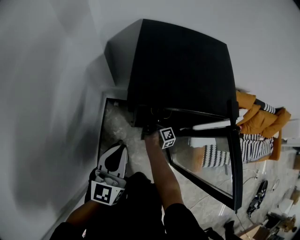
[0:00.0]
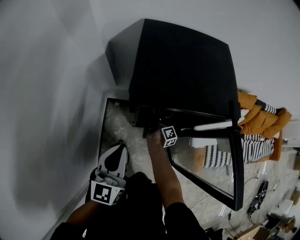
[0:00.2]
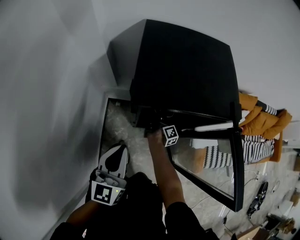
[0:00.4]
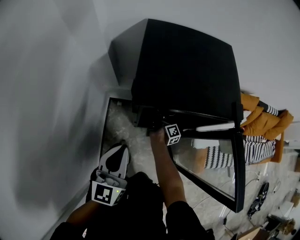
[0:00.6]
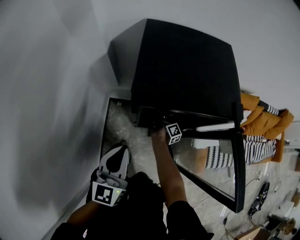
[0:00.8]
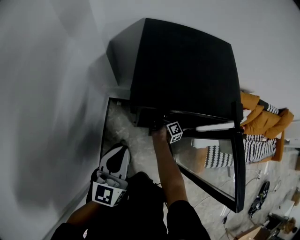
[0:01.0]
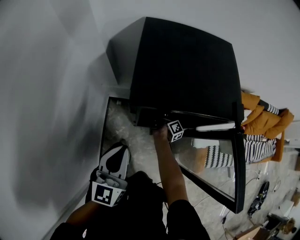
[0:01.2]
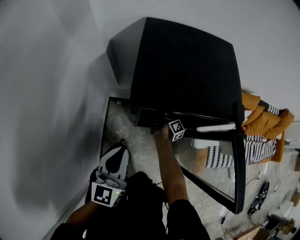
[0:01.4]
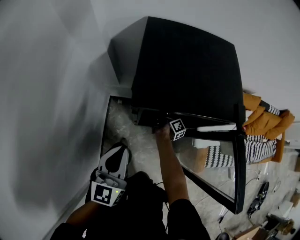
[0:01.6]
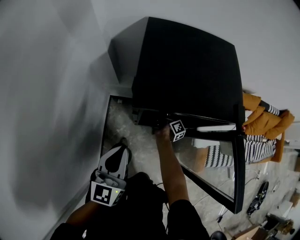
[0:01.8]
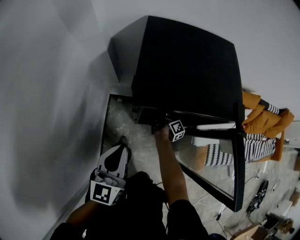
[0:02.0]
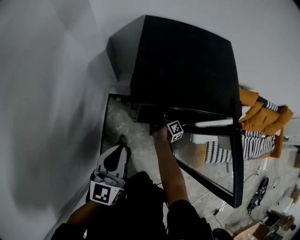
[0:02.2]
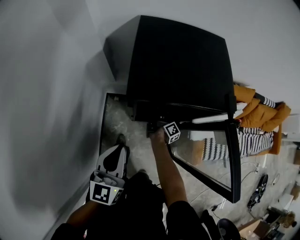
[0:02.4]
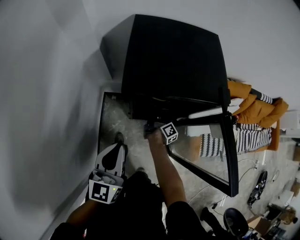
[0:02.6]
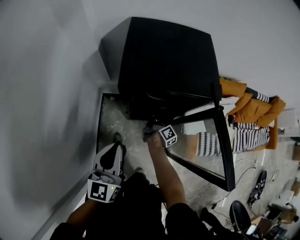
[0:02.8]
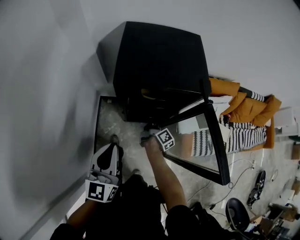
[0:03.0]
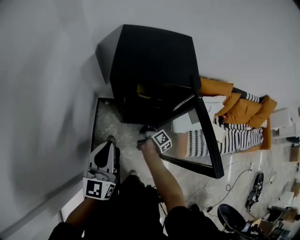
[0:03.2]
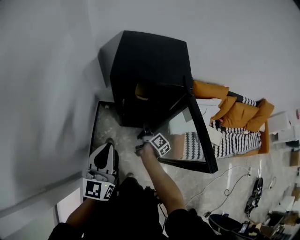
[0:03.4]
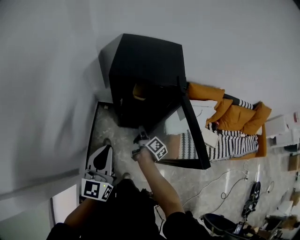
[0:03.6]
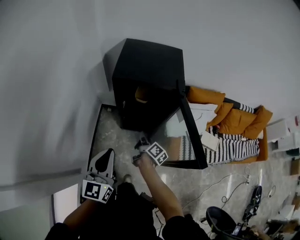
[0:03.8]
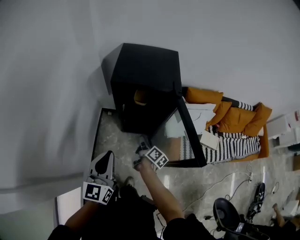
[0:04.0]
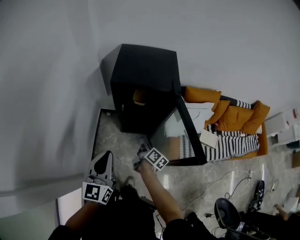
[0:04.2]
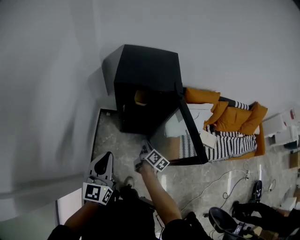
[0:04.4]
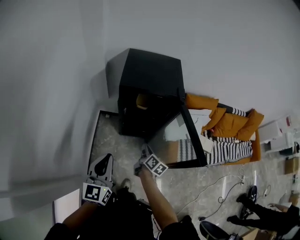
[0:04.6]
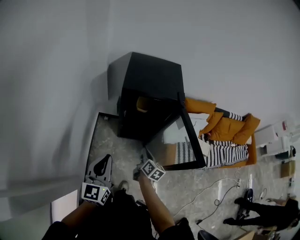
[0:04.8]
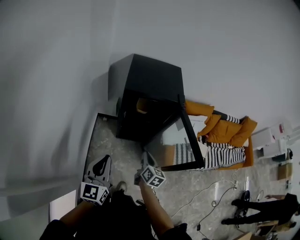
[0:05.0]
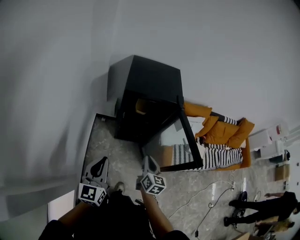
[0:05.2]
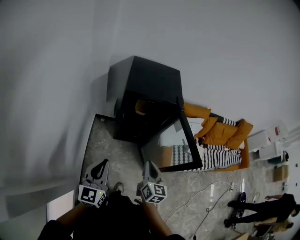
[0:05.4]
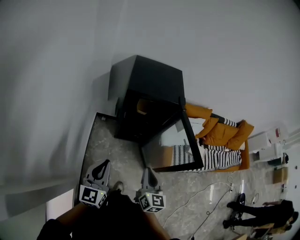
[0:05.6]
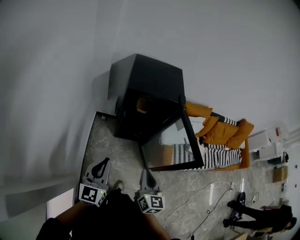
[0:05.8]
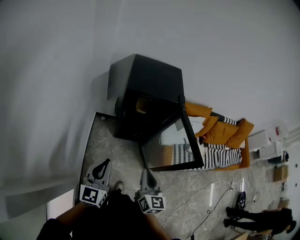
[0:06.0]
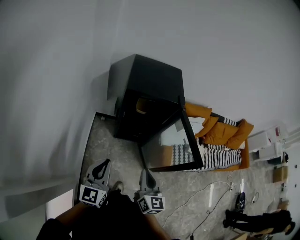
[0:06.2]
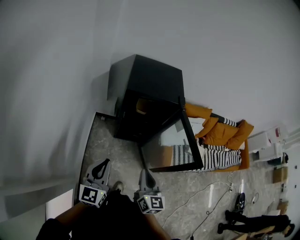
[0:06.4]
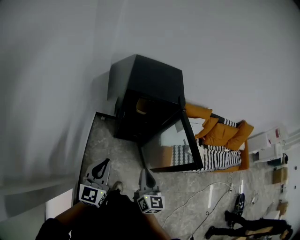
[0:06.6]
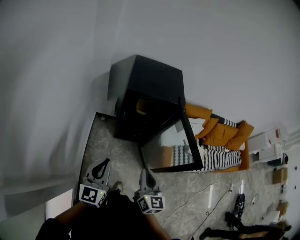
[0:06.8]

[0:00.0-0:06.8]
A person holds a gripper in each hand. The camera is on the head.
1.4 to 2.8 s: The left gripper changes place by about 5 cm.
2.8 to 4.0 s: The left gripper shifts by some 20 cm.
4.0 to 5.4 s: The left gripper ends up about 10 cm from where it was.

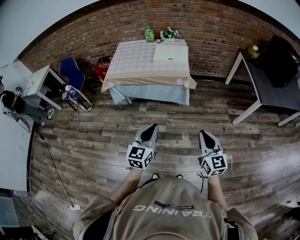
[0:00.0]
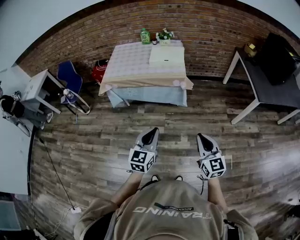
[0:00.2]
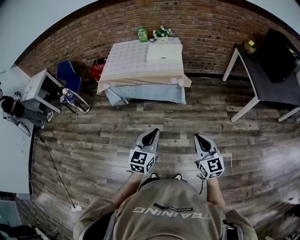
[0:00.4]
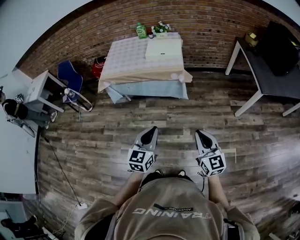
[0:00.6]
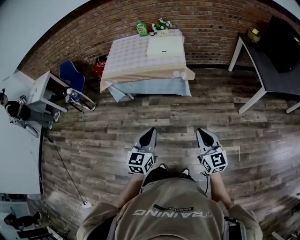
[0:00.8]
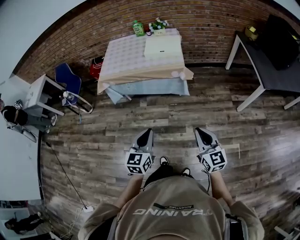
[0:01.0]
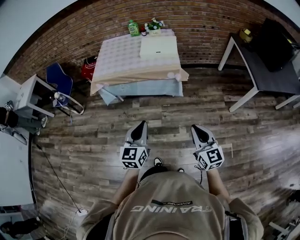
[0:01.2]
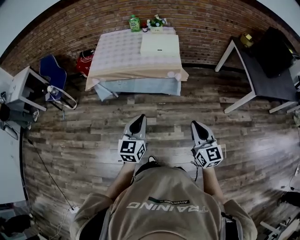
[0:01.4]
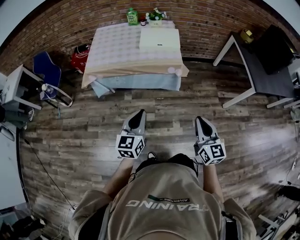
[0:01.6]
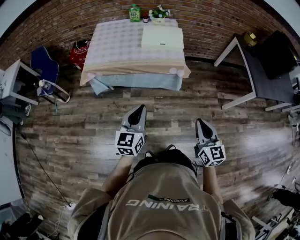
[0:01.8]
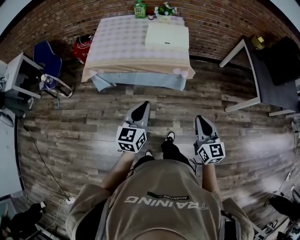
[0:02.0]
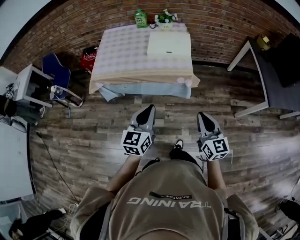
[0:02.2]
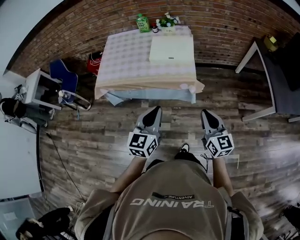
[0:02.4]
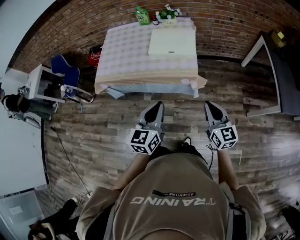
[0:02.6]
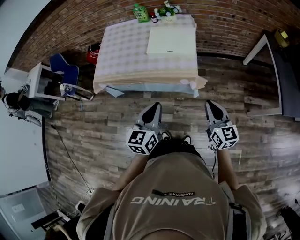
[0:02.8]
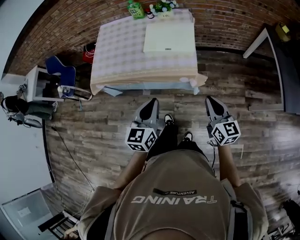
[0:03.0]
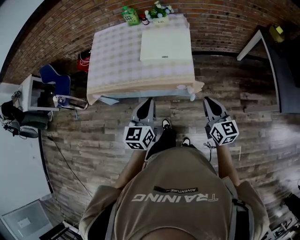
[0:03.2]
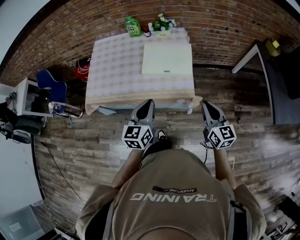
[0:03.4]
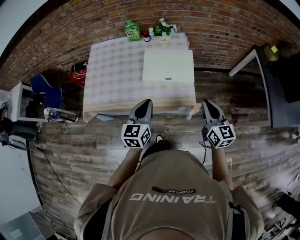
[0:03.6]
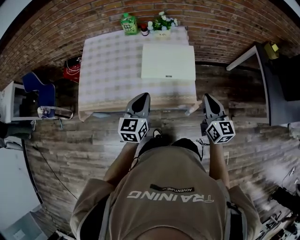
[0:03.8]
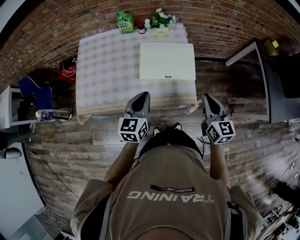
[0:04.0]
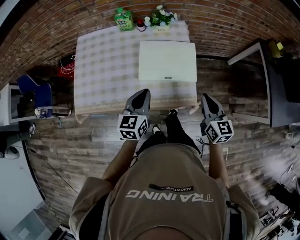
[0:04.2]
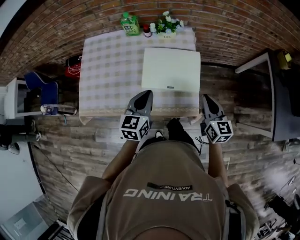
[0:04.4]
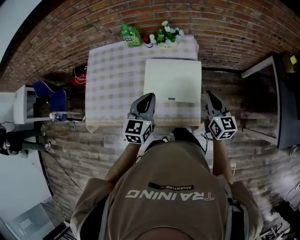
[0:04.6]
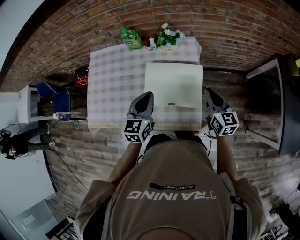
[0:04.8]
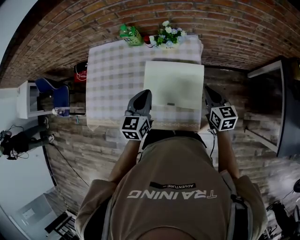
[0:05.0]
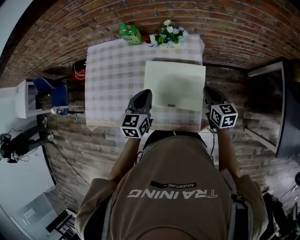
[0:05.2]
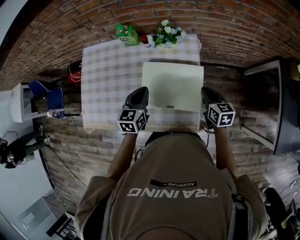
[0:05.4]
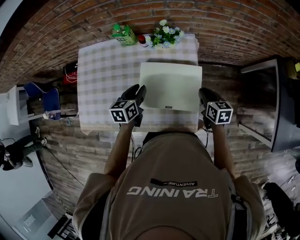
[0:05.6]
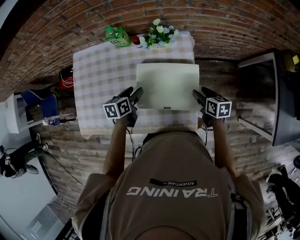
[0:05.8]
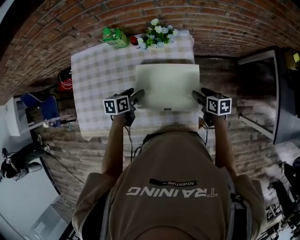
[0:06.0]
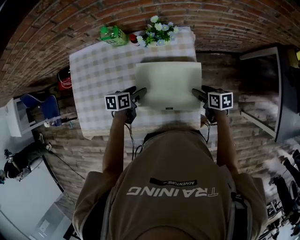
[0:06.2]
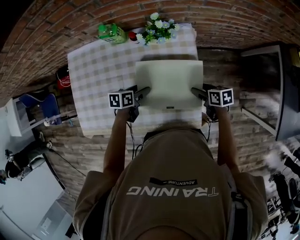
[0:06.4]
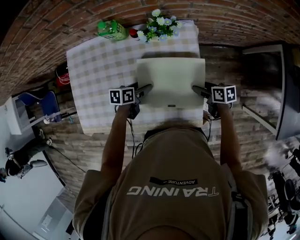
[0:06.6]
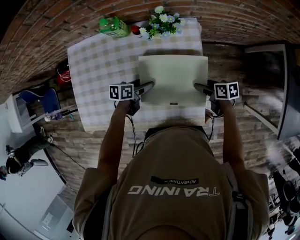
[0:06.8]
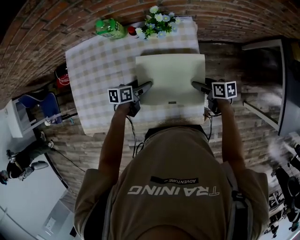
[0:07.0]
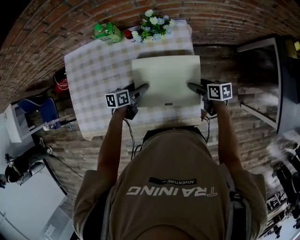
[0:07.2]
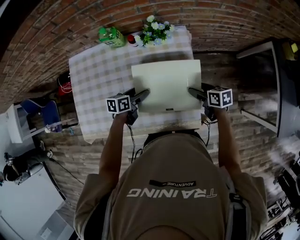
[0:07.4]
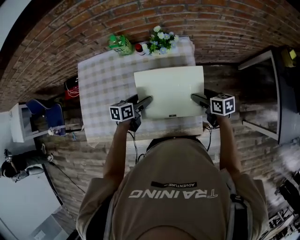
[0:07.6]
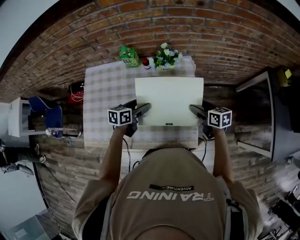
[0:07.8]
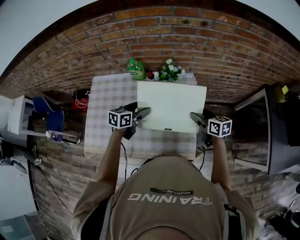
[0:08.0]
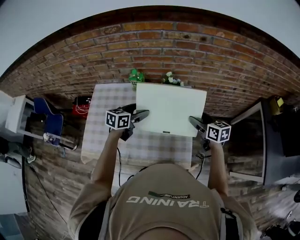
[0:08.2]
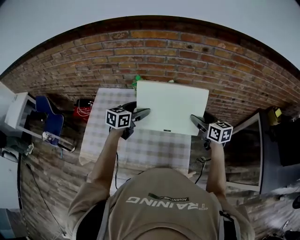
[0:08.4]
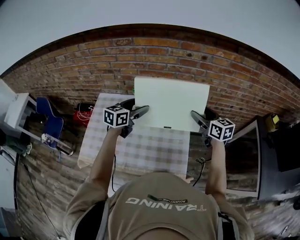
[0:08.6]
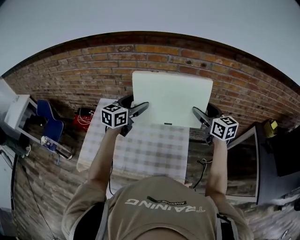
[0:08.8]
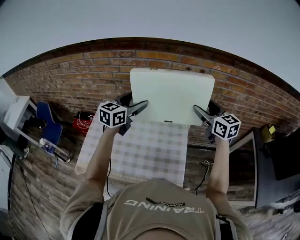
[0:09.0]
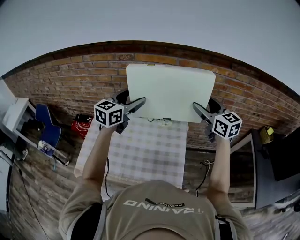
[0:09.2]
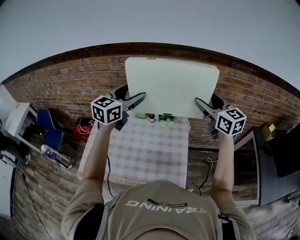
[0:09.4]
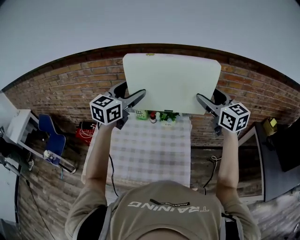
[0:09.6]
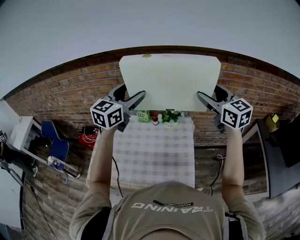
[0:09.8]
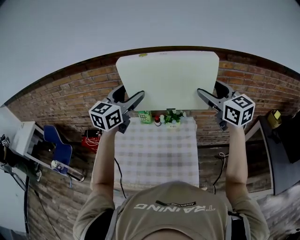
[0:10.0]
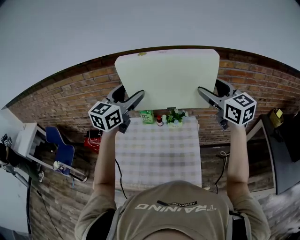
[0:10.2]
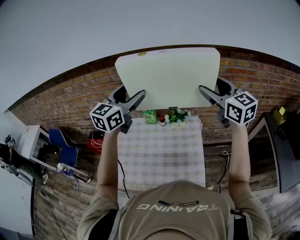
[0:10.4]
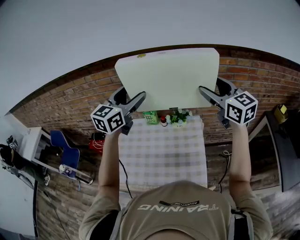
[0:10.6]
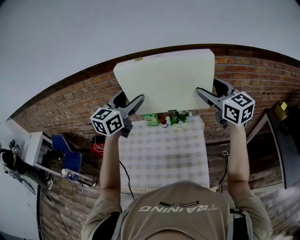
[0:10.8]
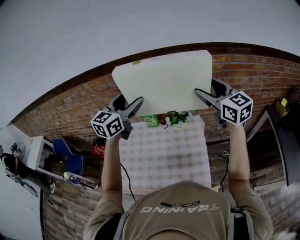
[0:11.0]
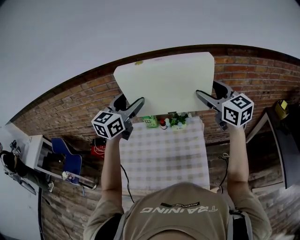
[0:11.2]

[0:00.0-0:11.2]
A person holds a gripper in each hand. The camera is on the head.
0.0 to 1.6 s: The left gripper travels forward and to the left by roughly 15 cm, while the right gripper travels forward by about 10 cm.
1.6 to 3.2 s: Both grippers travel together forward, about 30 cm.
3.2 to 4.8 s: The grippers both shift forward by roughly 35 cm.
4.8 to 6.4 s: Both grippers move downward, roughly 20 cm. The left gripper changes its angle by approximately 50 degrees, and opens. The right gripper angles its fingers downward, by roughly 30 degrees, and opens.
6.4 to 8.0 s: Both grippers move upward, some 15 cm. The left gripper turns by about 30 degrees. Meanwhile the right gripper changes its angle by approximately 30 degrees.
8.0 to 9.6 s: The two grippers go approximately 35 cm upward. The right gripper rotates roughly 40 degrees. The left gripper changes its angle by about 40 degrees.
9.6 to 11.2 s: The grippers move only a little.

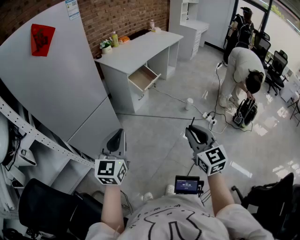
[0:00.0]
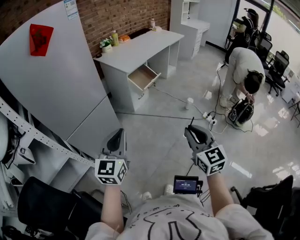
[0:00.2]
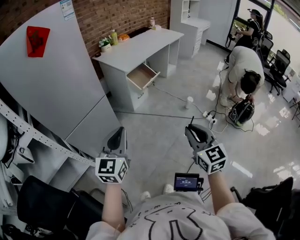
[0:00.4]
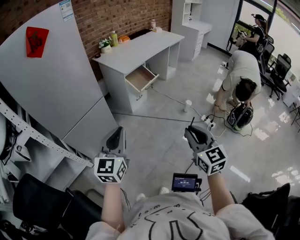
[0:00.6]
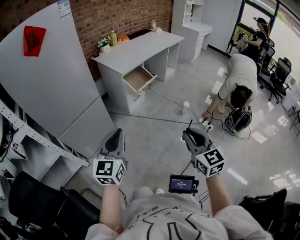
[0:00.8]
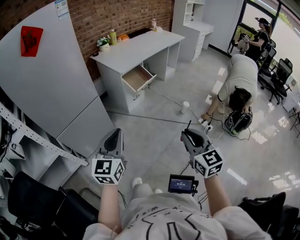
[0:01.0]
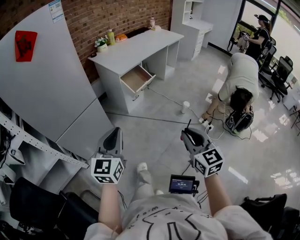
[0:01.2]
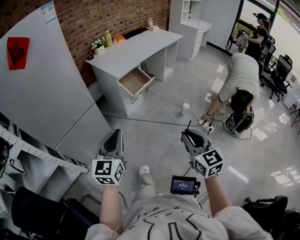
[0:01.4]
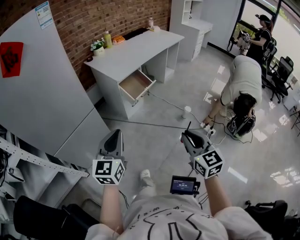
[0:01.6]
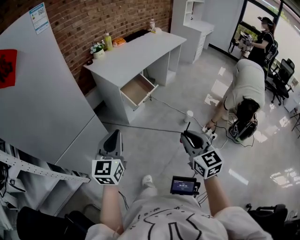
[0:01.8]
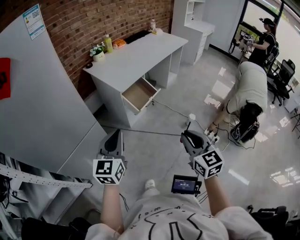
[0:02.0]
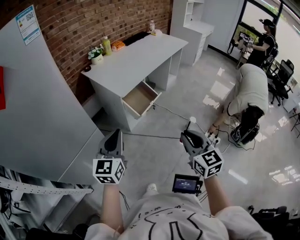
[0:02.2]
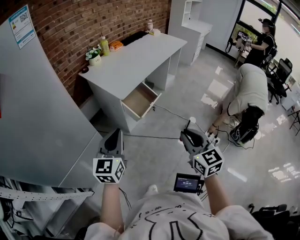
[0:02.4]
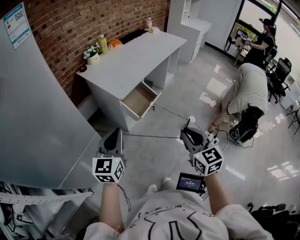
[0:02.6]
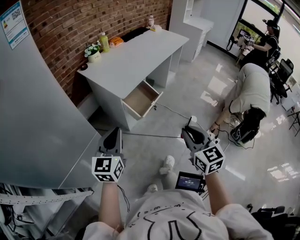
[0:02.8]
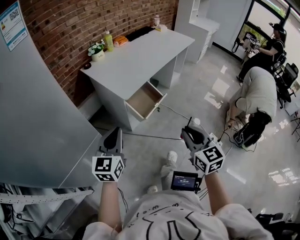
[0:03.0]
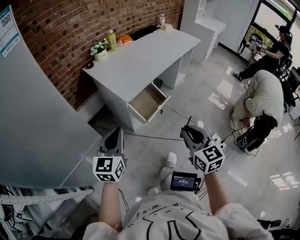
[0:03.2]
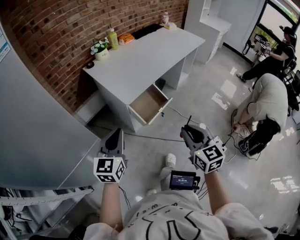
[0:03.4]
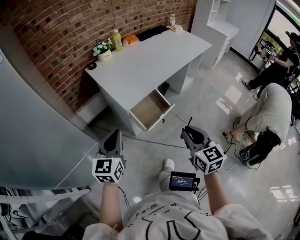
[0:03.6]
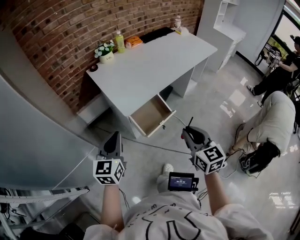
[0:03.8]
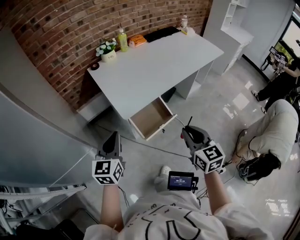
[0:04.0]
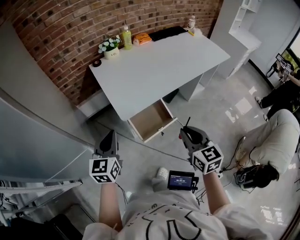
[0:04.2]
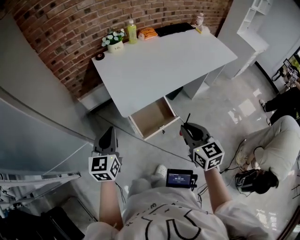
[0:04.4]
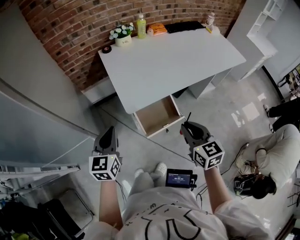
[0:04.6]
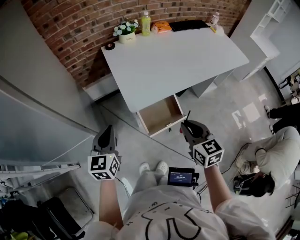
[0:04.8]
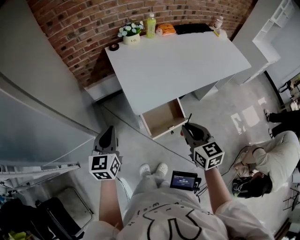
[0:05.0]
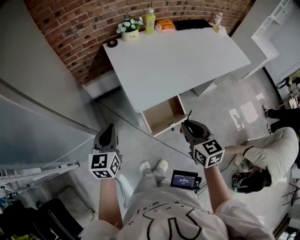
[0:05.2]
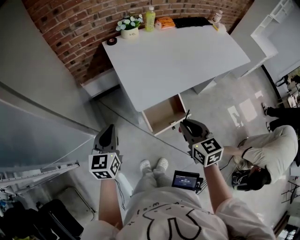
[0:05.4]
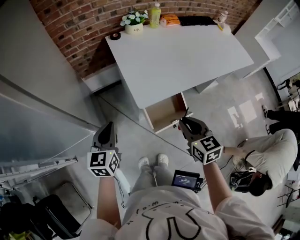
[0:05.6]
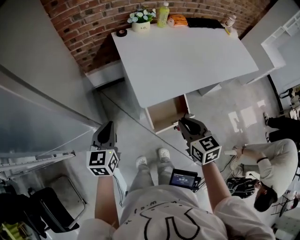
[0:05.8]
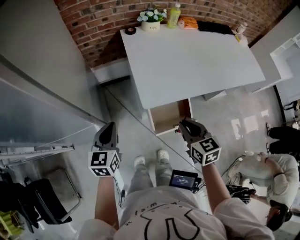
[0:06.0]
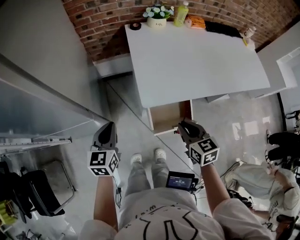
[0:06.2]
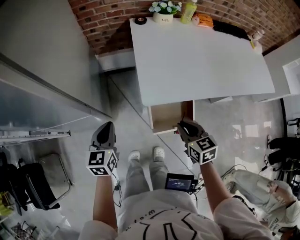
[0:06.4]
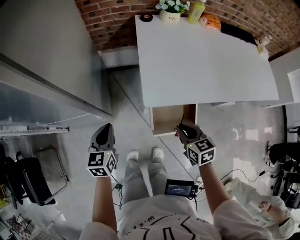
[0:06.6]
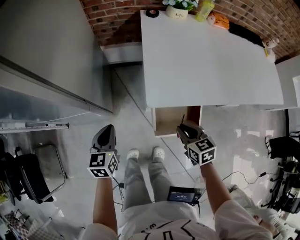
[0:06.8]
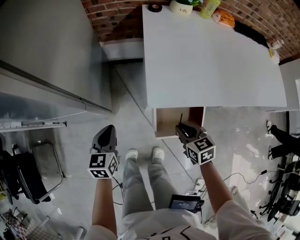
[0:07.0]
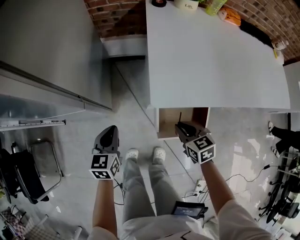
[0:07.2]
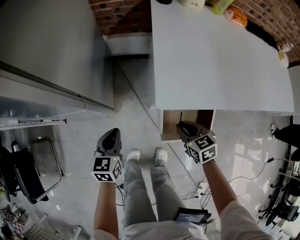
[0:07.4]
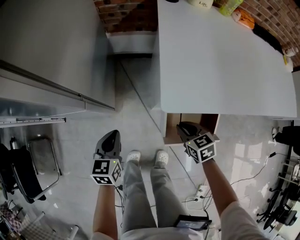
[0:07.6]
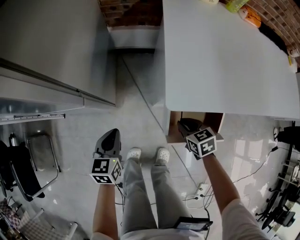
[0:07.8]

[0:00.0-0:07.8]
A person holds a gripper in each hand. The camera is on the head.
0.0 to 1.6 s: The two grippers go approximately 20 cm forward and to the right.
1.6 to 3.2 s: Both grippers move forward, approximately 30 cm.
3.2 to 4.6 s: The left gripper goes approximately 15 cm forward, and rotates some 30 degrees. The right gripper shifts roughly 25 cm forward, and turns by approximately 20 degrees.
4.6 to 6.2 s: The left gripper is displaced downward and to the left by some 10 cm, while the right gripper moves forward, downward and to the left, some 15 cm.
6.2 to 7.8 s: The two grippers go roughly 25 cm downward. The right gripper rotates roughly 30 degrees.
